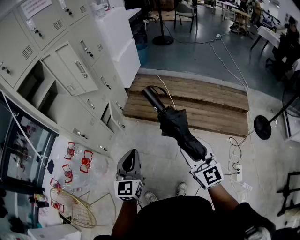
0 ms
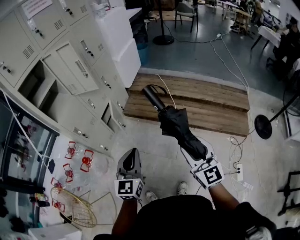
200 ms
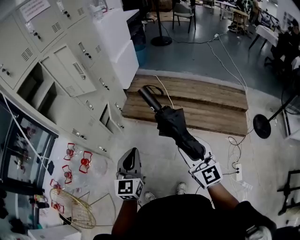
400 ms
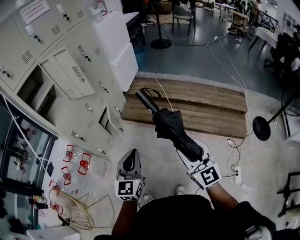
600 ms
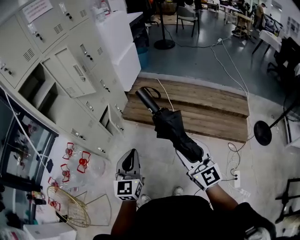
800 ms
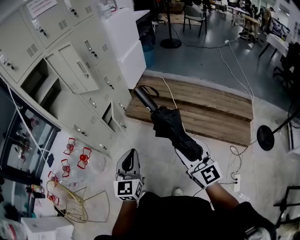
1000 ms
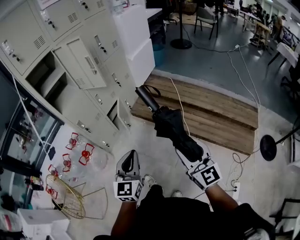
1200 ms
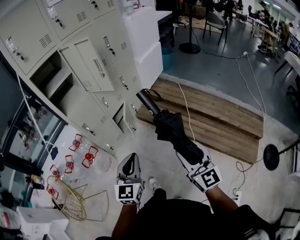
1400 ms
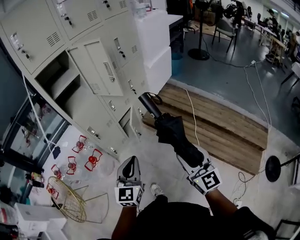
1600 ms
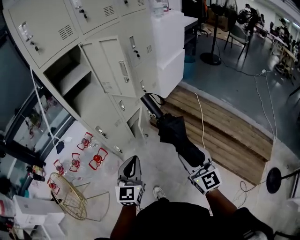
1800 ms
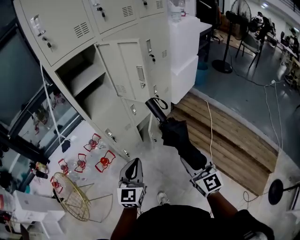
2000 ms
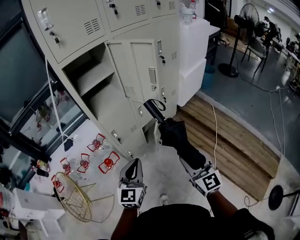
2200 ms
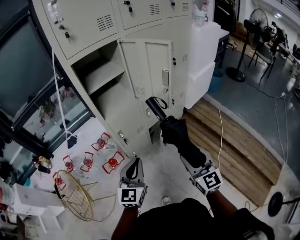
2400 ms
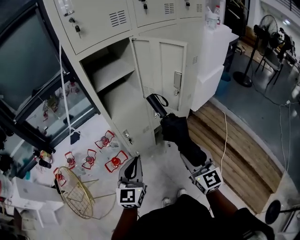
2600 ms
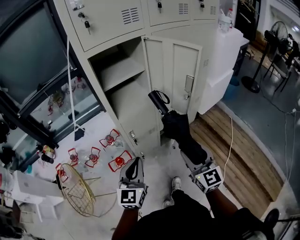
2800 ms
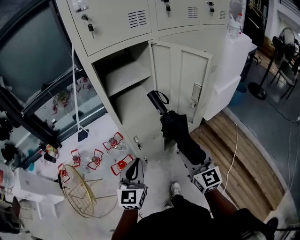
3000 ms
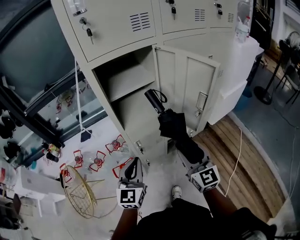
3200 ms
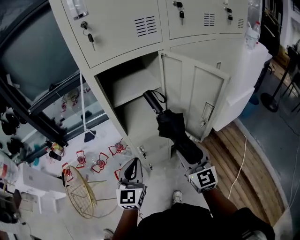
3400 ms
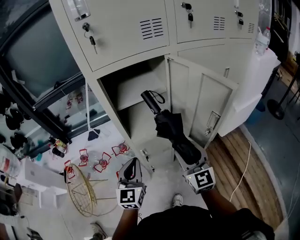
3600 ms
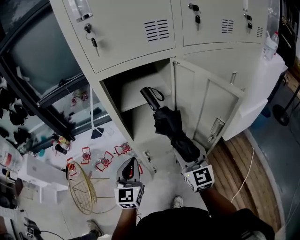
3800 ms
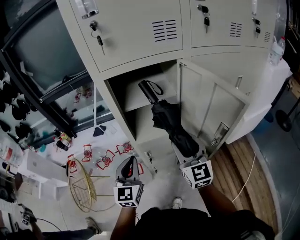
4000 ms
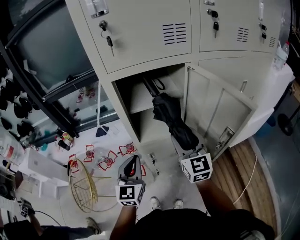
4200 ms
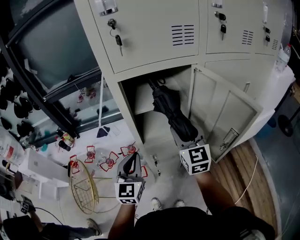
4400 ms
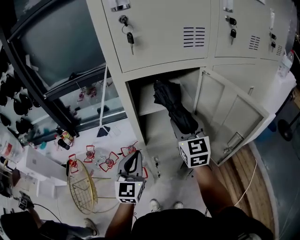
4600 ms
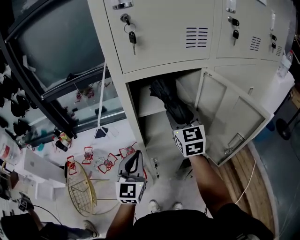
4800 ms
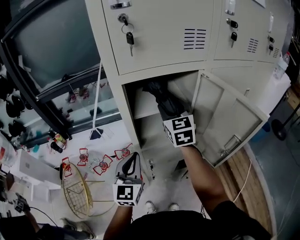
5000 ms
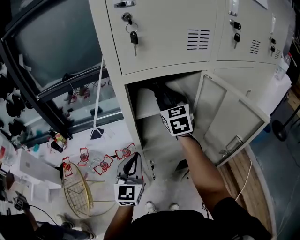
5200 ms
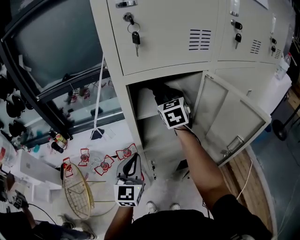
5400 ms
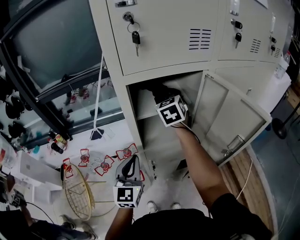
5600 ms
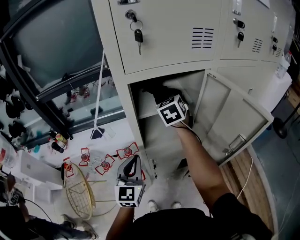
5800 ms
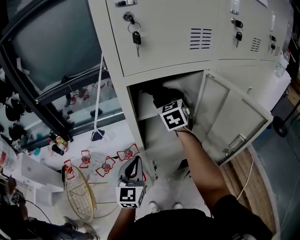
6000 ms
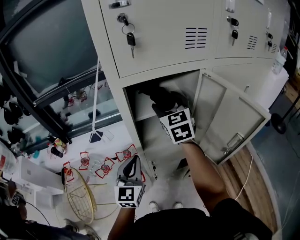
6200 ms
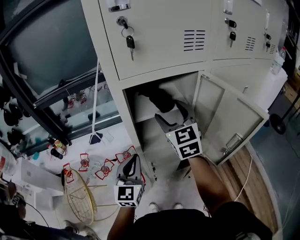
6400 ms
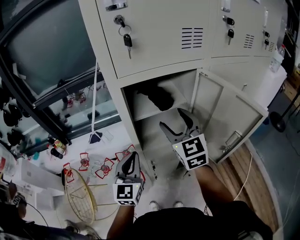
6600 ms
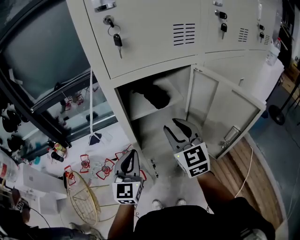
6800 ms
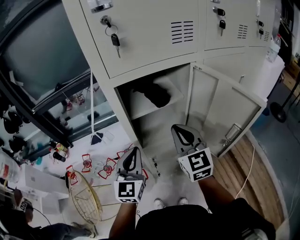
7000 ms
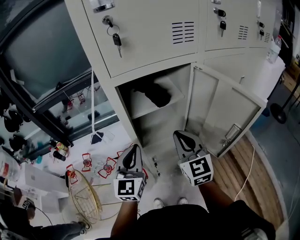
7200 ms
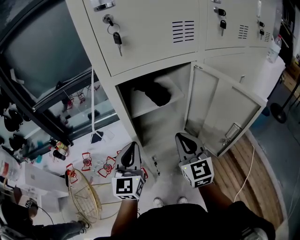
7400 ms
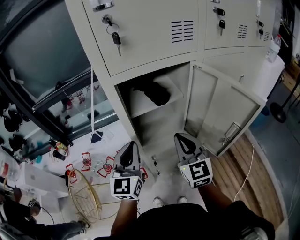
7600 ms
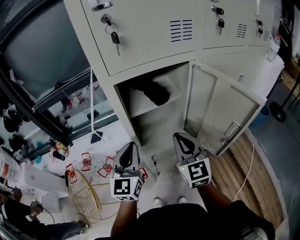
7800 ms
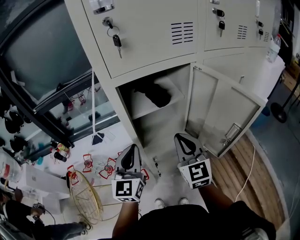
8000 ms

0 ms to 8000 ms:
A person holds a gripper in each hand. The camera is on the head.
0 ms to 1600 ms: The left gripper moves forward, approximately 10 cm, while the right gripper goes approximately 15 cm forward.
1600 ms to 3200 ms: The right gripper changes place by roughly 40 cm, and turns by some 20 degrees. The left gripper moves approximately 35 cm, and turns by about 30 degrees.
3200 ms to 4800 ms: The right gripper shifts some 30 cm forward. Meanwhile the left gripper goes roughly 15 cm forward.
4800 ms to 6400 ms: The right gripper reaches about 10 cm forward, then returns, and opens its fingers.
6400 ms to 8000 ms: The right gripper moves backward and downward, about 15 cm, and closes up. The left gripper heads upward, covering some 5 cm.

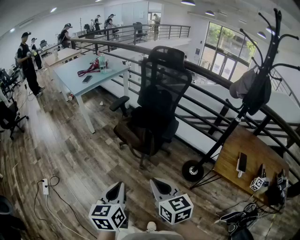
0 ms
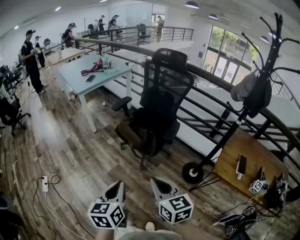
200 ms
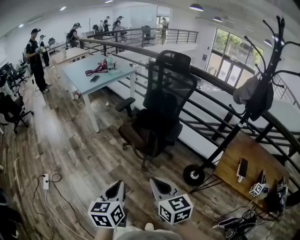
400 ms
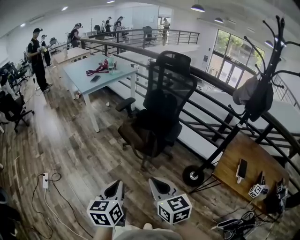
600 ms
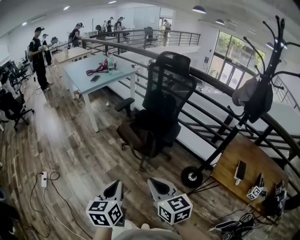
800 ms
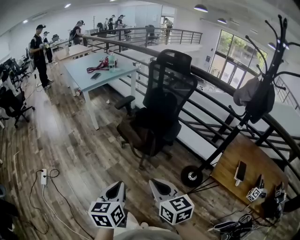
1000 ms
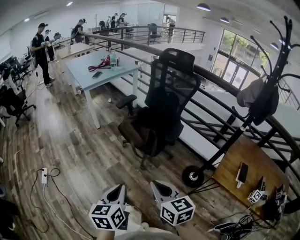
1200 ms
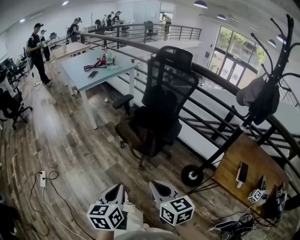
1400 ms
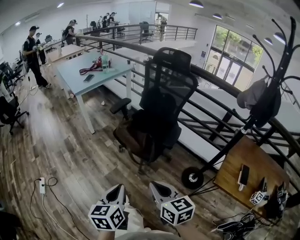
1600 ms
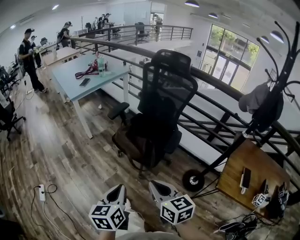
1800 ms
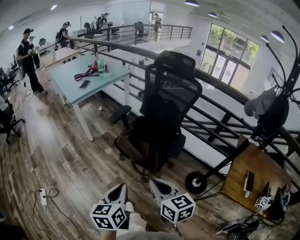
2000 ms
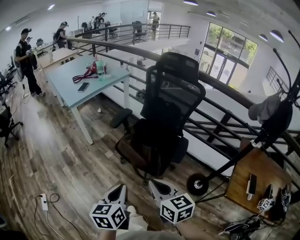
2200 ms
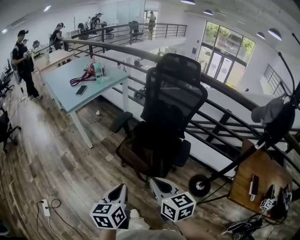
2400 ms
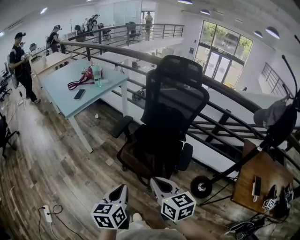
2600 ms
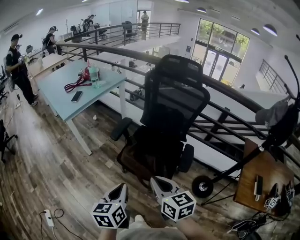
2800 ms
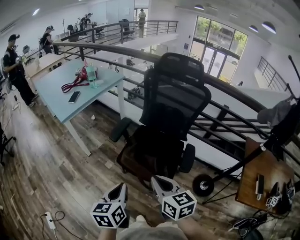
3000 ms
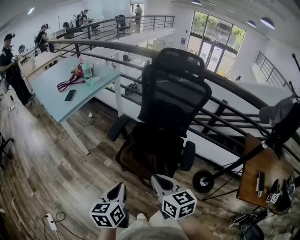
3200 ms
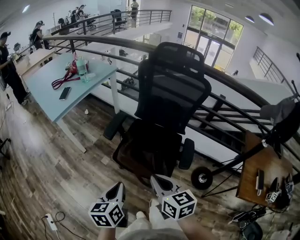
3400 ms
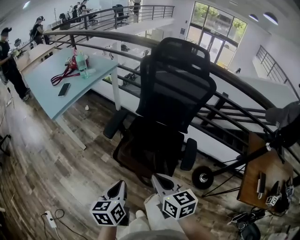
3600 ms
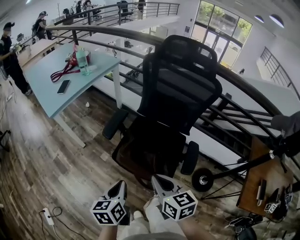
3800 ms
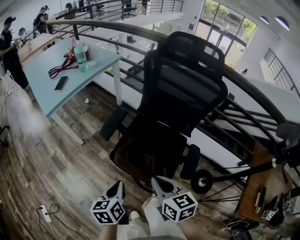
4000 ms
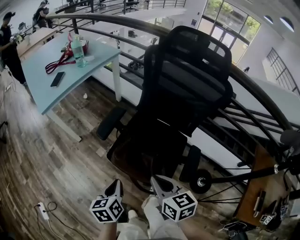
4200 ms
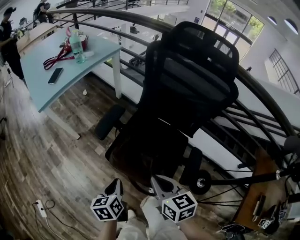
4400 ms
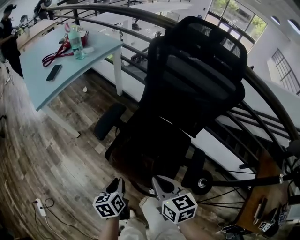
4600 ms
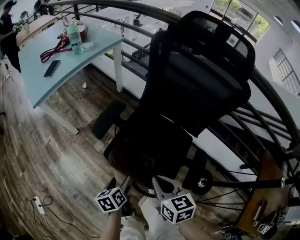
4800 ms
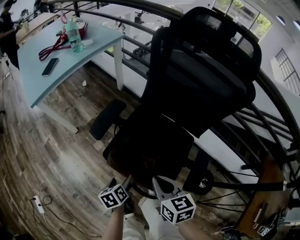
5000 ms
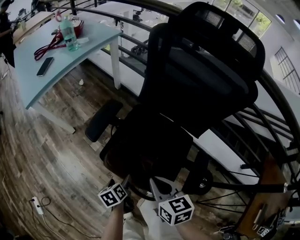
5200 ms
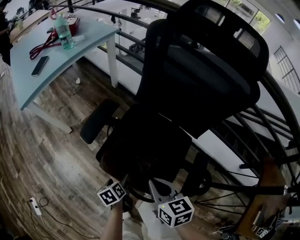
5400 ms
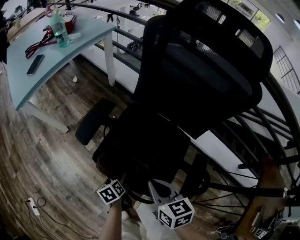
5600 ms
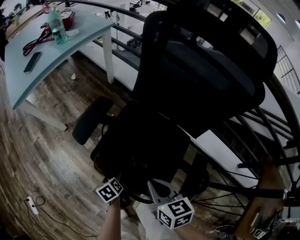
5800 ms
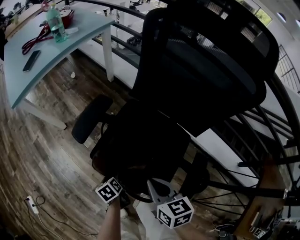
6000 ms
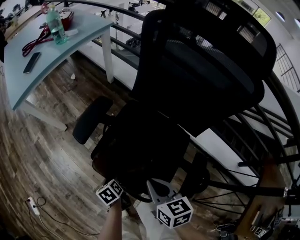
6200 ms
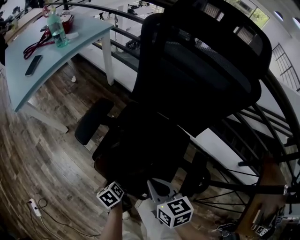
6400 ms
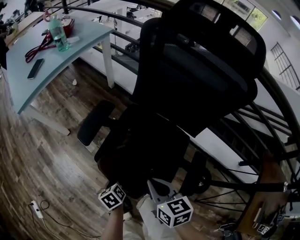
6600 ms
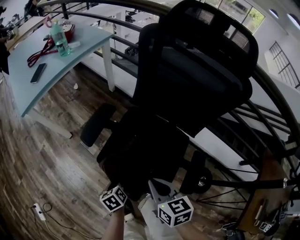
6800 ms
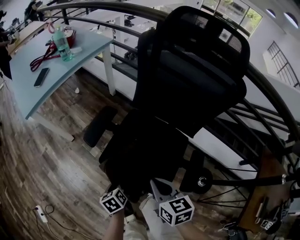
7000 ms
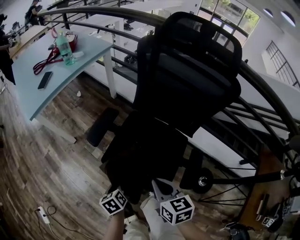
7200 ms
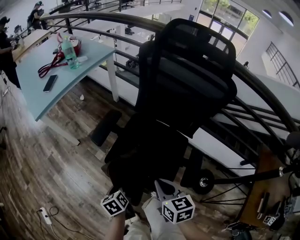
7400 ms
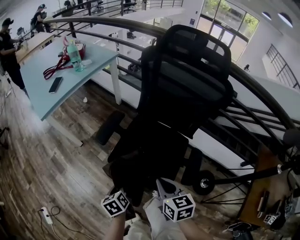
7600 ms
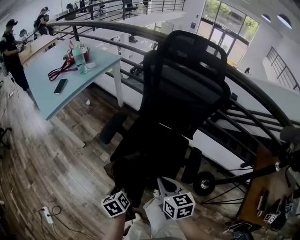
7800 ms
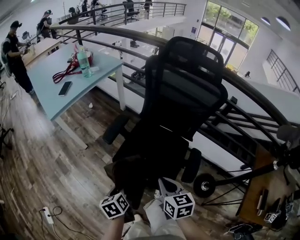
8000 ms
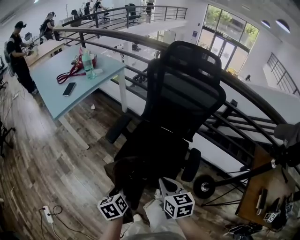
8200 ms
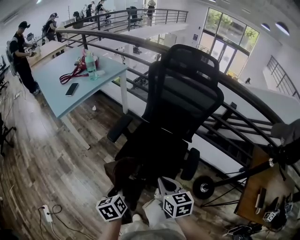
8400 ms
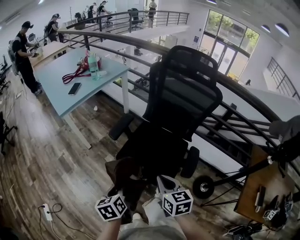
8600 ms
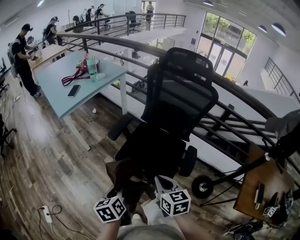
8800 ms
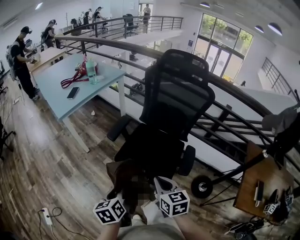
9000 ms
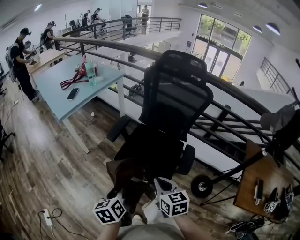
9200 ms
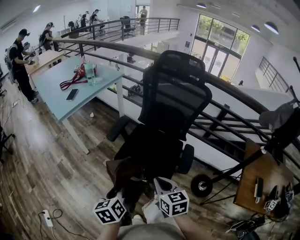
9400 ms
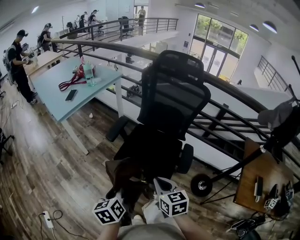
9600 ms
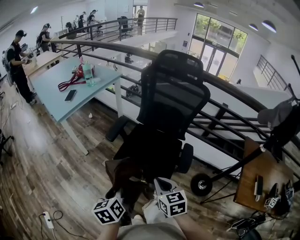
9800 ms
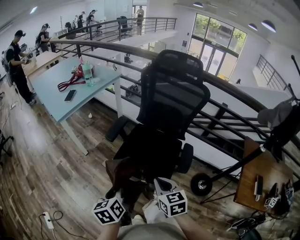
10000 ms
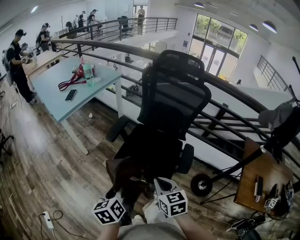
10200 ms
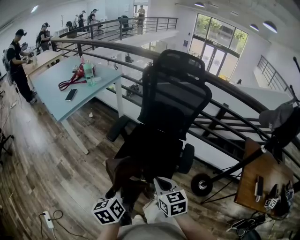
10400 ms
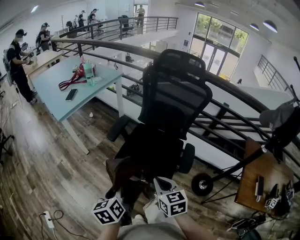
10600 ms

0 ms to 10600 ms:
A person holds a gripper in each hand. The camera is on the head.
0 ms to 1600 ms: The right gripper changes place by roughly 5 cm; the left gripper shifts by some 5 cm.
1600 ms to 3000 ms: The grippers both shift forward by roughly 30 cm.
3000 ms to 4600 ms: The left gripper is displaced downward and forward by approximately 25 cm, and turns by approximately 20 degrees; the right gripper travels forward and downward by about 20 cm.
4600 ms to 6000 ms: The left gripper shifts about 20 cm downward, turns by approximately 20 degrees, and opens. Meanwhile the right gripper travels downward by some 10 cm.
6000 ms to 7600 ms: The left gripper travels upward by roughly 20 cm, and closes its fingers; the right gripper is displaced upward and backward by roughly 10 cm.
7600 ms to 9000 ms: The right gripper is displaced backward and upward by about 10 cm, while the left gripper travels upward and backward by approximately 20 cm.
9000 ms to 10600 ms: The grippers stay close to where they were, moving slightly.

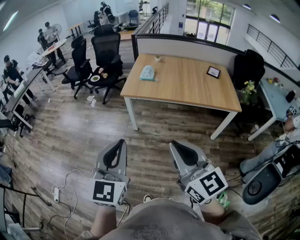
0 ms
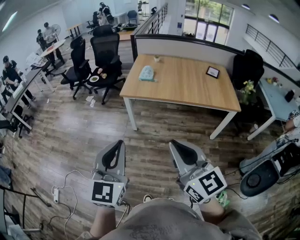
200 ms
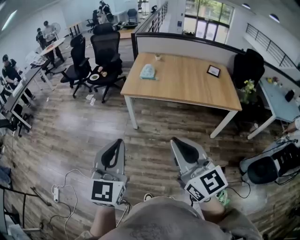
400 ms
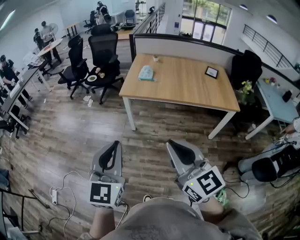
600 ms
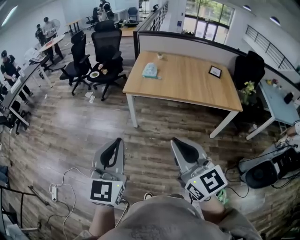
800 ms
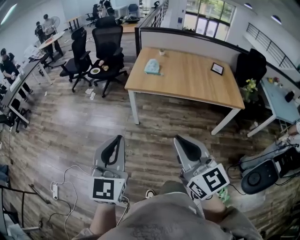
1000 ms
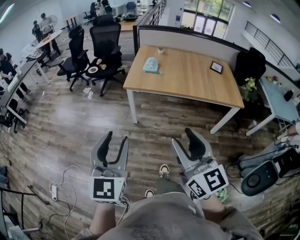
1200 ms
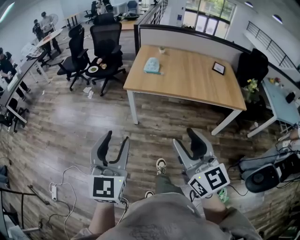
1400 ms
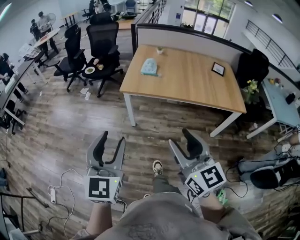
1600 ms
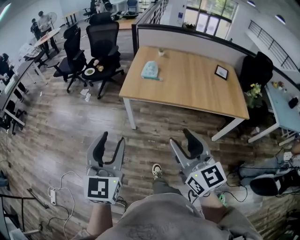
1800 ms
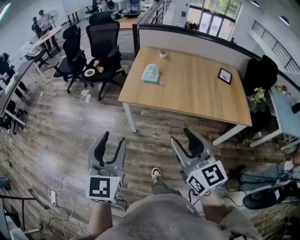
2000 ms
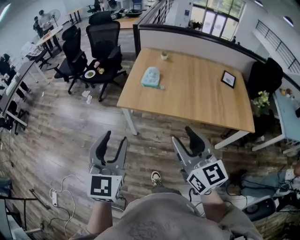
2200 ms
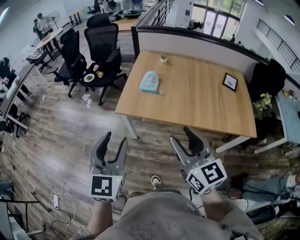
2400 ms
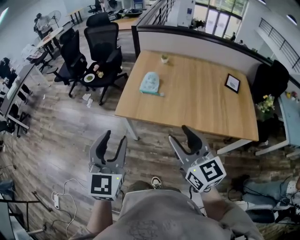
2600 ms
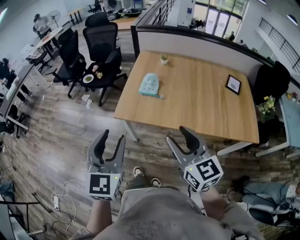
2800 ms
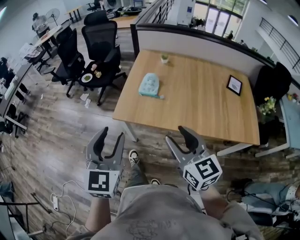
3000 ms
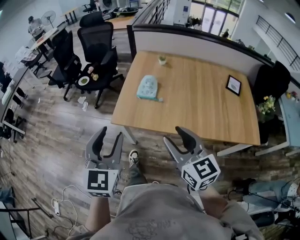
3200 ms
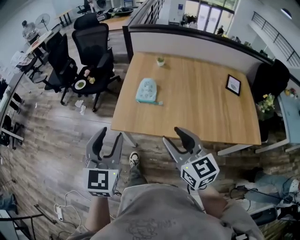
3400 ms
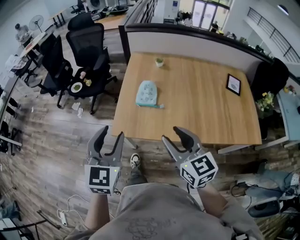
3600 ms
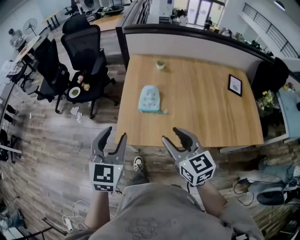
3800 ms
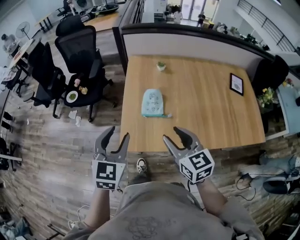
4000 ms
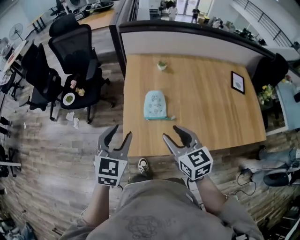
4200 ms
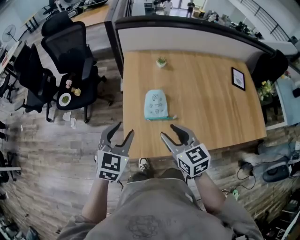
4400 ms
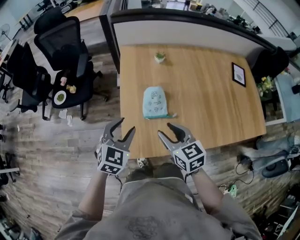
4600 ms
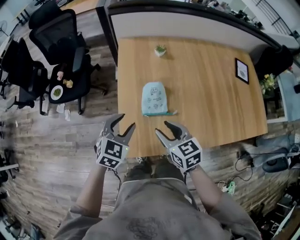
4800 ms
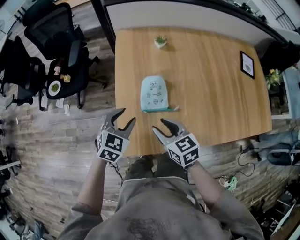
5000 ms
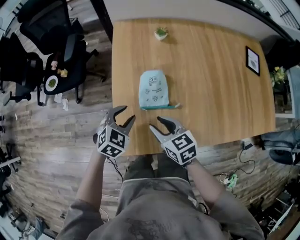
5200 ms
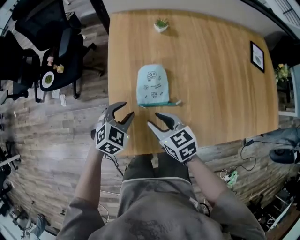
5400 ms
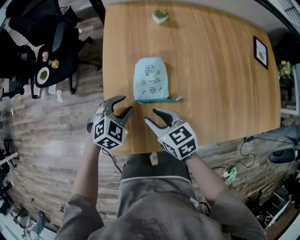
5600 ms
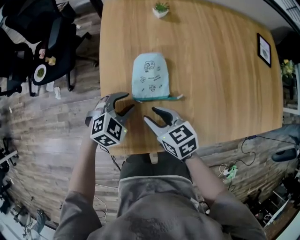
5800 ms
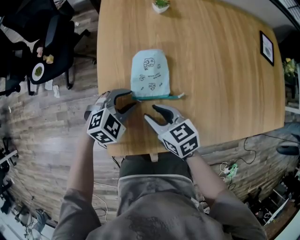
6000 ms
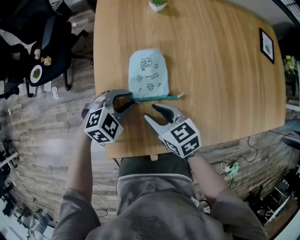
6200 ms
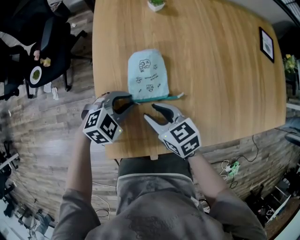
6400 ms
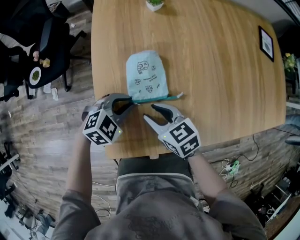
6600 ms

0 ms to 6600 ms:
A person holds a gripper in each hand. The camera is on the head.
0 ms to 1600 ms: The left gripper goes some 15 cm forward and to the left, and opens its fingers. The right gripper goes about 10 cm forward, and opens.
1600 ms to 3200 ms: Both grippers travel together forward, some 35 cm.
3200 ms to 5000 ms: The left gripper goes about 50 cm forward and downward, and angles its fingers downward, by about 30 degrees. The right gripper is displaced forward, downward and to the left by about 40 cm, and turns by approximately 30 degrees.
5000 ms to 6600 ms: The two grippers go some 15 cm downward. The left gripper rotates roughly 30 degrees, and closes its fingers.
